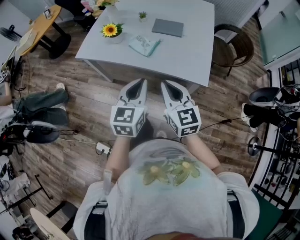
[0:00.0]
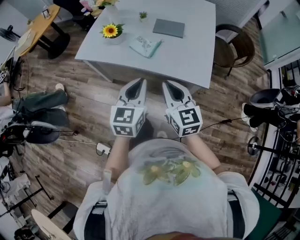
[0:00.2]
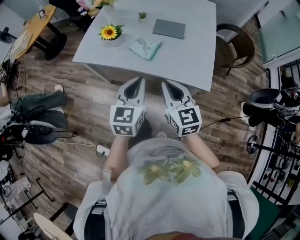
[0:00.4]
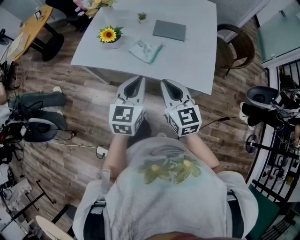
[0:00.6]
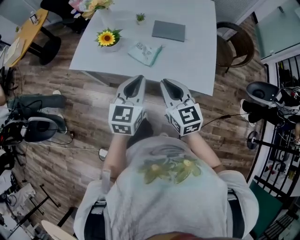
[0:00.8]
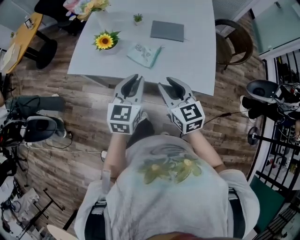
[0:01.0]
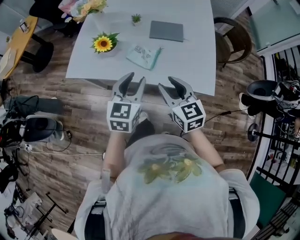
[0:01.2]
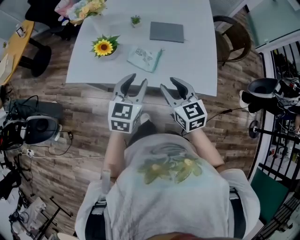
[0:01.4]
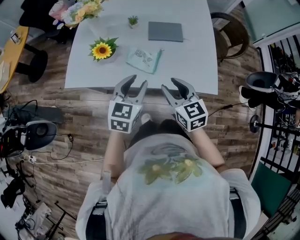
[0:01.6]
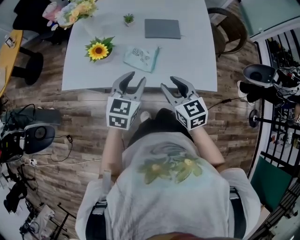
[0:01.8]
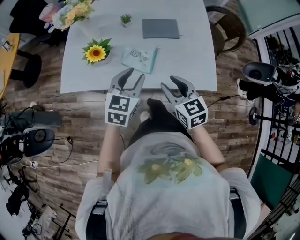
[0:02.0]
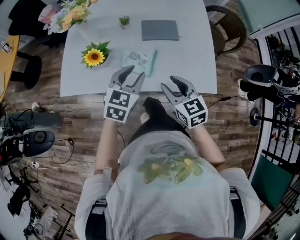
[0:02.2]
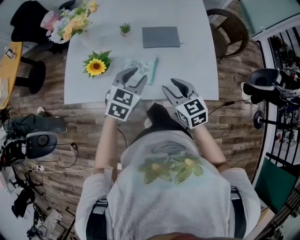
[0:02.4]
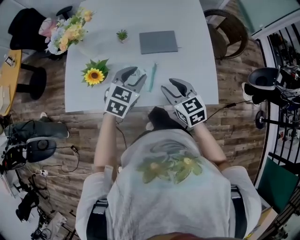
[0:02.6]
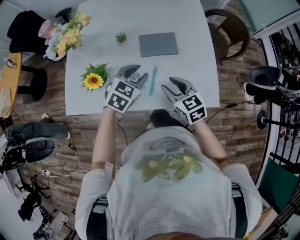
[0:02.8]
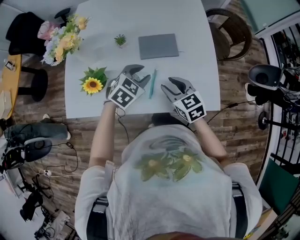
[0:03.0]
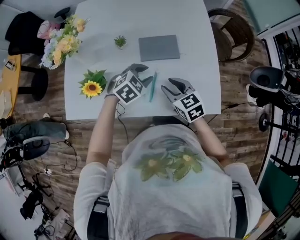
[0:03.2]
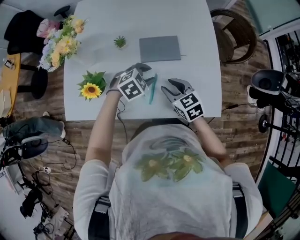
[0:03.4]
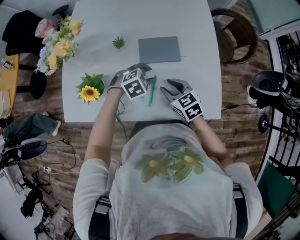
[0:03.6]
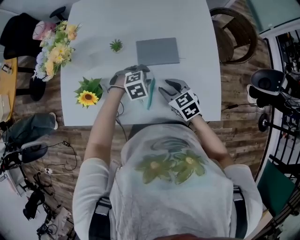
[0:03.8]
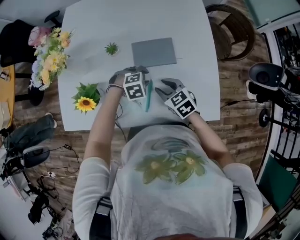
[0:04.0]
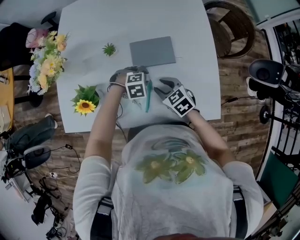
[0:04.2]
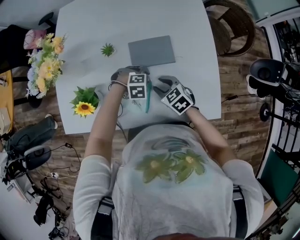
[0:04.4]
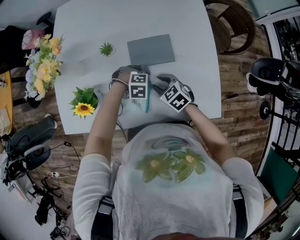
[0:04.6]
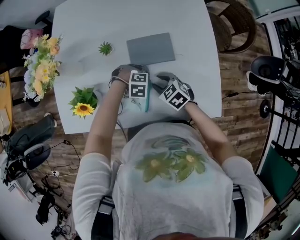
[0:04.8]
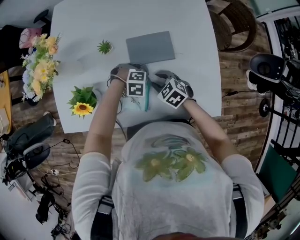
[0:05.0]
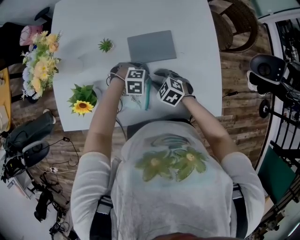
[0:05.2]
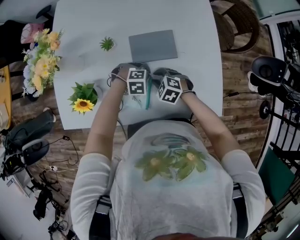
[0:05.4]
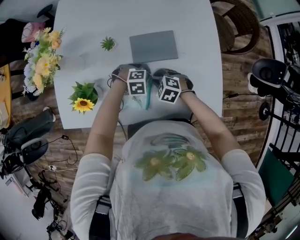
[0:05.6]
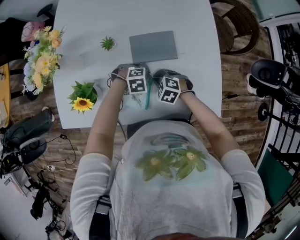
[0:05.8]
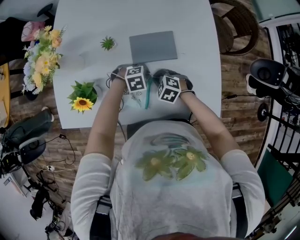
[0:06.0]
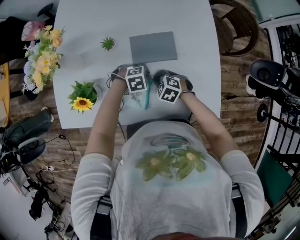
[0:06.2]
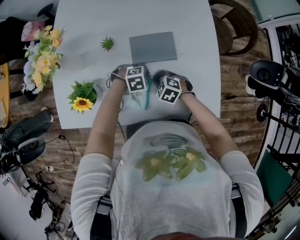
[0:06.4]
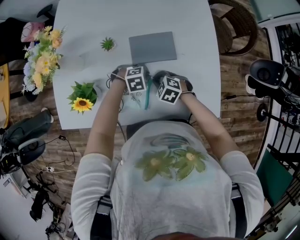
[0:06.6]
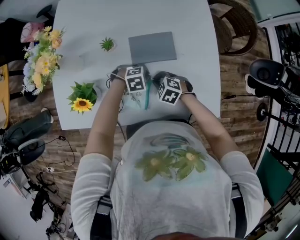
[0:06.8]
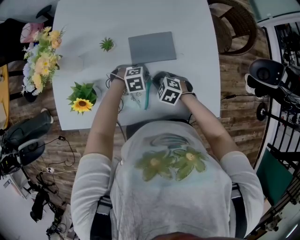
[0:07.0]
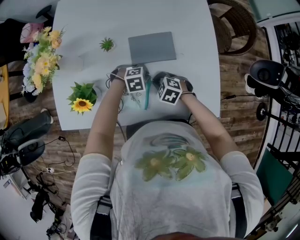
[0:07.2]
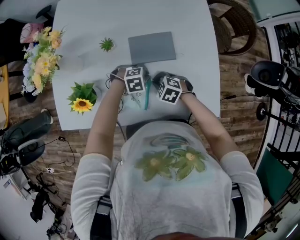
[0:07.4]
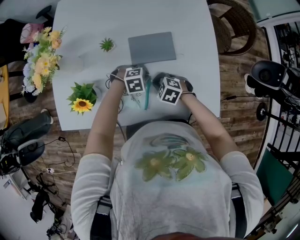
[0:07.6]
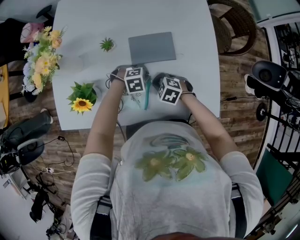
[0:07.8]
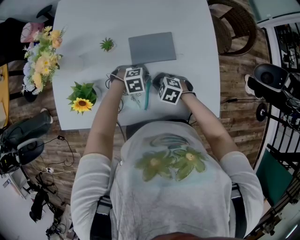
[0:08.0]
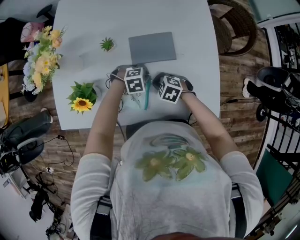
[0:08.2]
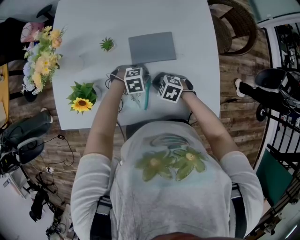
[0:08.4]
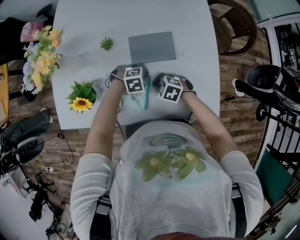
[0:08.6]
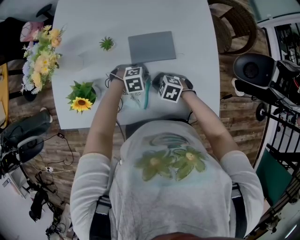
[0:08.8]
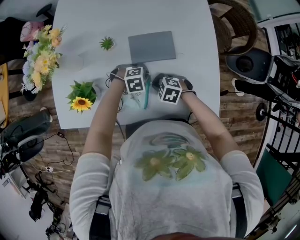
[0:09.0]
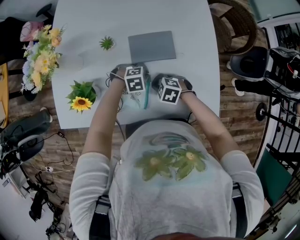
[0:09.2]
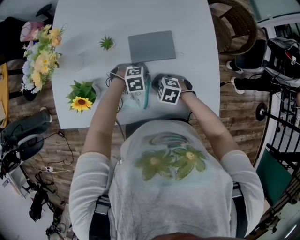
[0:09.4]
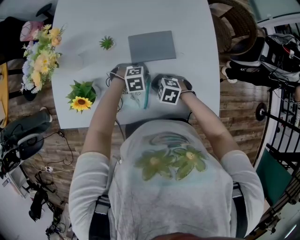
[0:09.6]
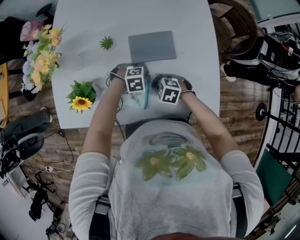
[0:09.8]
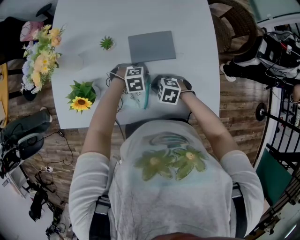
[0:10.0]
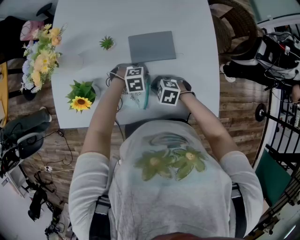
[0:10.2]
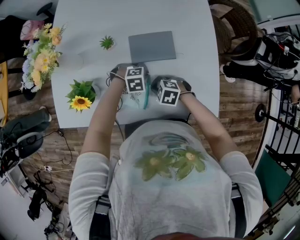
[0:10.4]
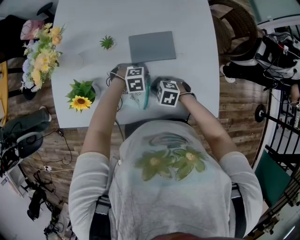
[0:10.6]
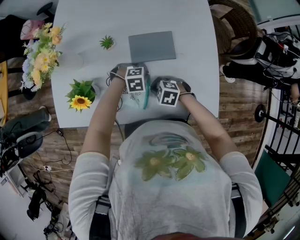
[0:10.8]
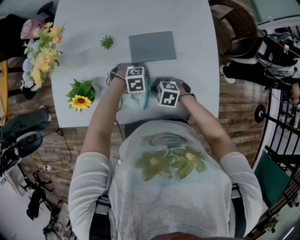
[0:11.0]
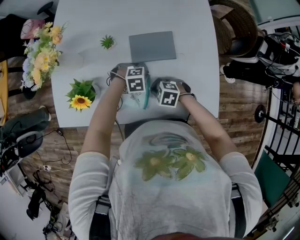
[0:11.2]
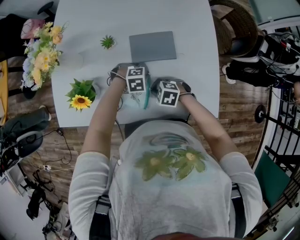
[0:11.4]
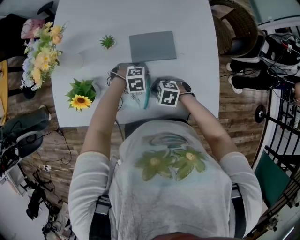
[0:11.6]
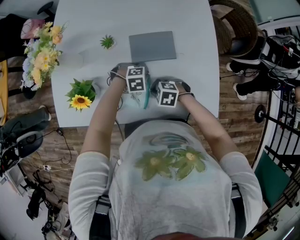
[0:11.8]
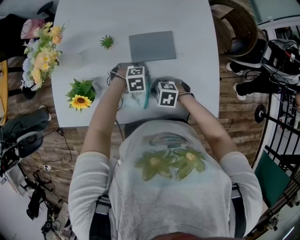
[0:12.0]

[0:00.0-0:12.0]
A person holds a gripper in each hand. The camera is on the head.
0.0 to 1.6 s: The left gripper is displaced forward and to the left by about 20 cm, rotates approximately 20 degrees, and opens; the right gripper is displaced forward by about 15 cm, and opens up.
1.6 to 3.0 s: Both grippers travel together forward and downward, roughly 20 cm. The left gripper changes its angle by approximately 40 degrees.
3.0 to 4.4 s: The right gripper is displaced downward by some 10 cm. Meanwhile the left gripper is displaced downward by approximately 15 cm, and turns by approximately 50 degrees.
4.4 to 6.0 s: The left gripper closes its fingers, while the right gripper goes approximately 5 cm downward, changes its angle by some 30 degrees, and closes up.
6.0 to 10.4 s: There are only small adjustments of the grippers.
10.4 to 12.0 s: There are only small adjustments of the grippers.

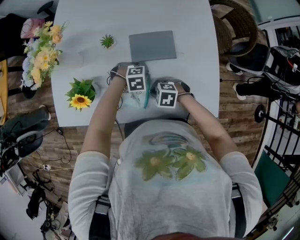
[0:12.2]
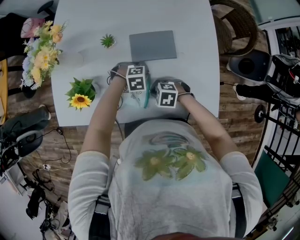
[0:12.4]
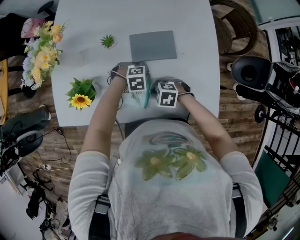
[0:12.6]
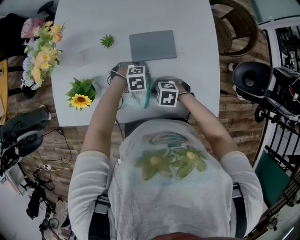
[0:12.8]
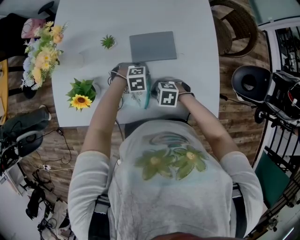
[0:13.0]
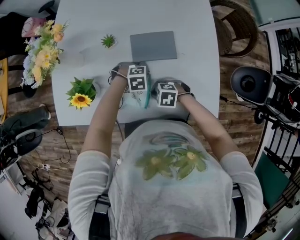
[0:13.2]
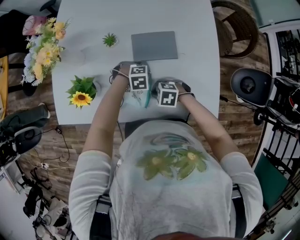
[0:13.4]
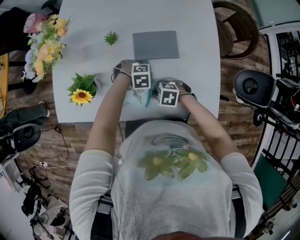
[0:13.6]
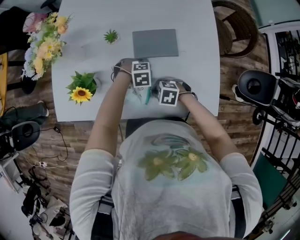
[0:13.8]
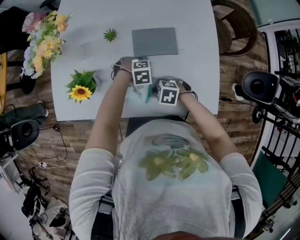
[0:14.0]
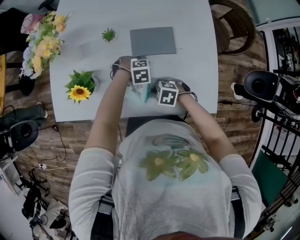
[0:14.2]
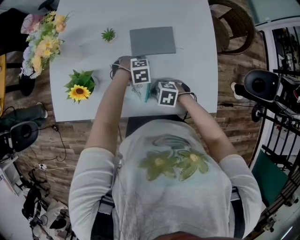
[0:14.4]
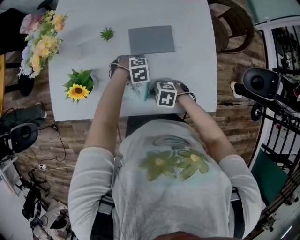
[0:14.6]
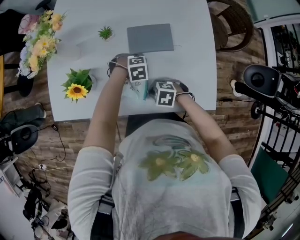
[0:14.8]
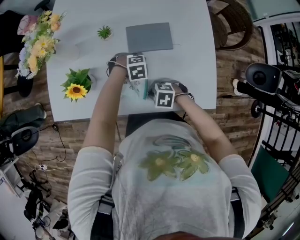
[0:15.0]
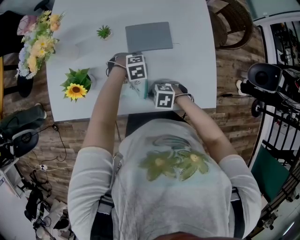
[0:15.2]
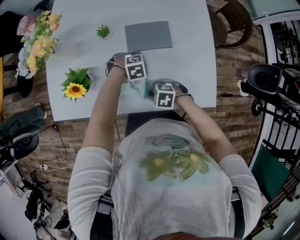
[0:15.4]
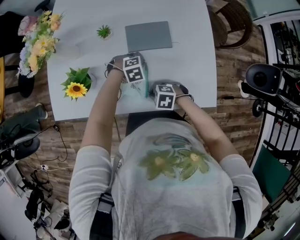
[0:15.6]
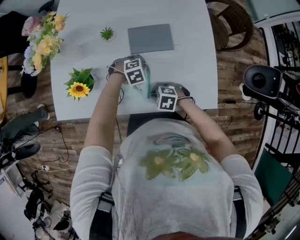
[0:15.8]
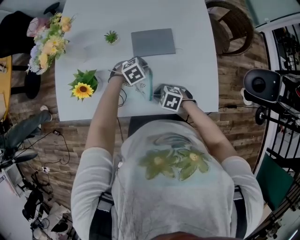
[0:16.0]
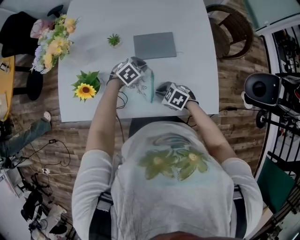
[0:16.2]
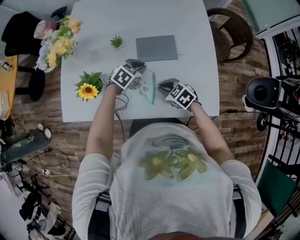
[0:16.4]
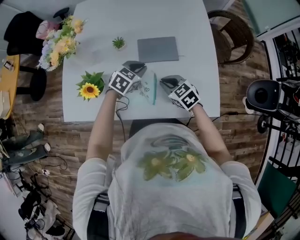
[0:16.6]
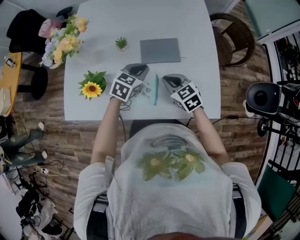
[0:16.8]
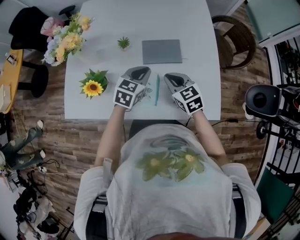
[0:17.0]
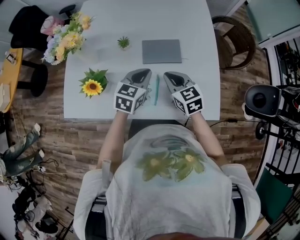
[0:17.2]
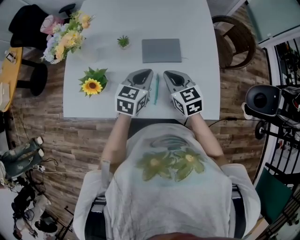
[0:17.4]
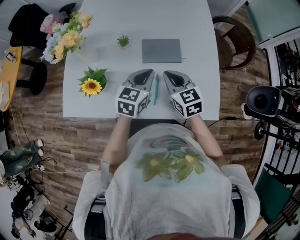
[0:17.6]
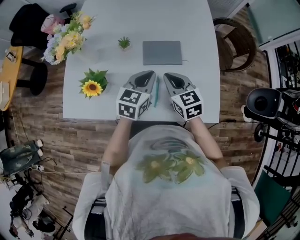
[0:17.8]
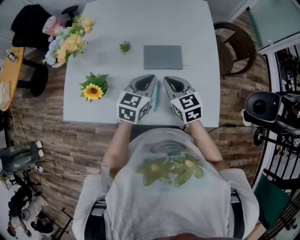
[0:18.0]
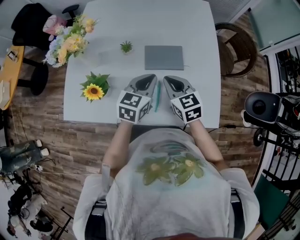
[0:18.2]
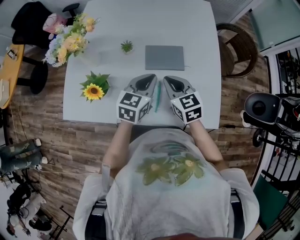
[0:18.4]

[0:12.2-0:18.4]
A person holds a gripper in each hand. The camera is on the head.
12.2 to 13.8 s: The grippers stay close to where they were, moving slightly.
13.8 to 15.4 s: The grippers make only small movements.
15.4 to 16.8 s: Both grippers travel together upward, some 15 cm. The left gripper tips its fingers upward by roughly 40 degrees. The right gripper swivels some 50 degrees.
16.8 to 18.4 s: The grippers both shift upward by some 5 cm. The left gripper swivels about 20 degrees.

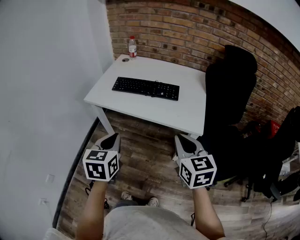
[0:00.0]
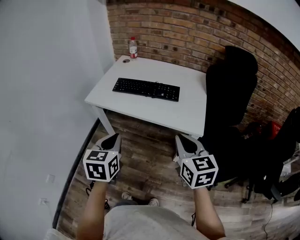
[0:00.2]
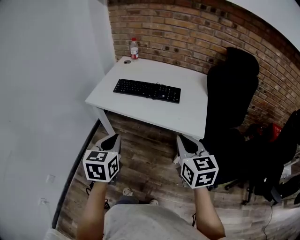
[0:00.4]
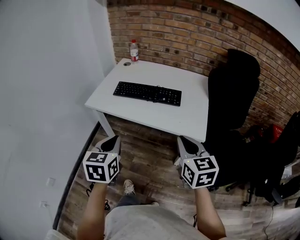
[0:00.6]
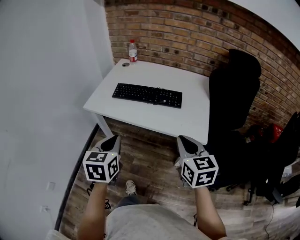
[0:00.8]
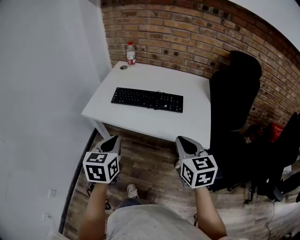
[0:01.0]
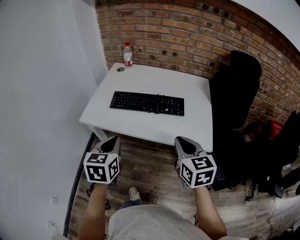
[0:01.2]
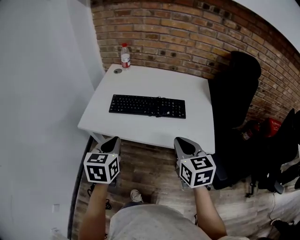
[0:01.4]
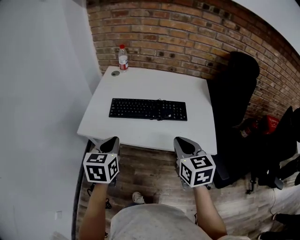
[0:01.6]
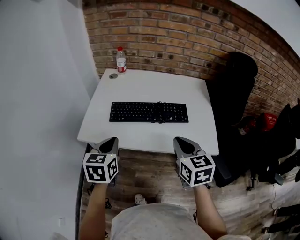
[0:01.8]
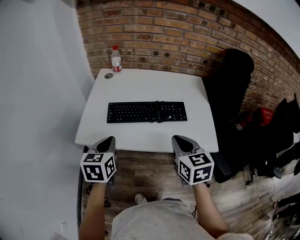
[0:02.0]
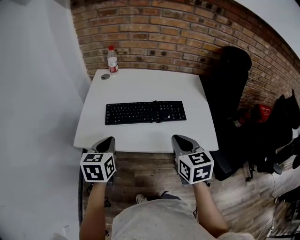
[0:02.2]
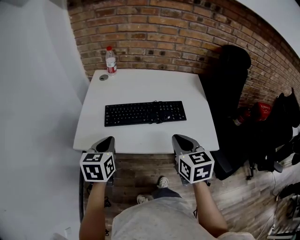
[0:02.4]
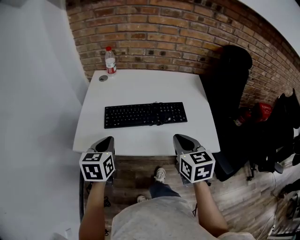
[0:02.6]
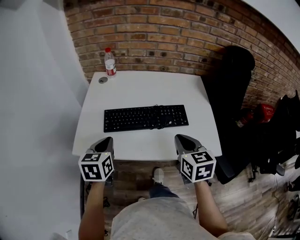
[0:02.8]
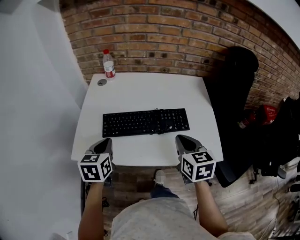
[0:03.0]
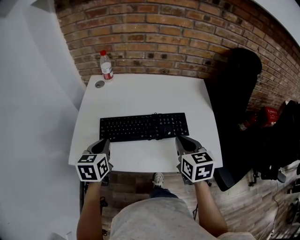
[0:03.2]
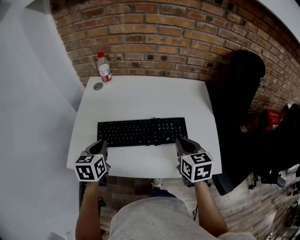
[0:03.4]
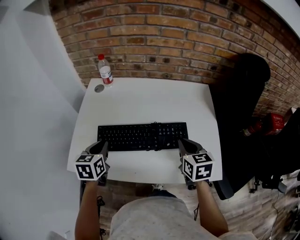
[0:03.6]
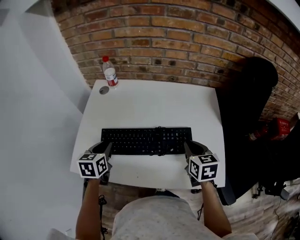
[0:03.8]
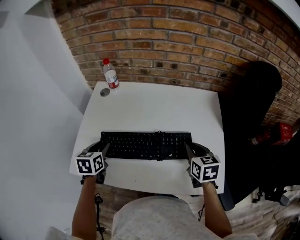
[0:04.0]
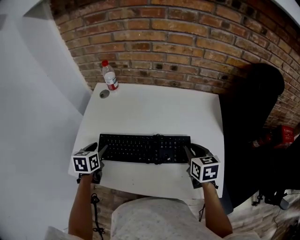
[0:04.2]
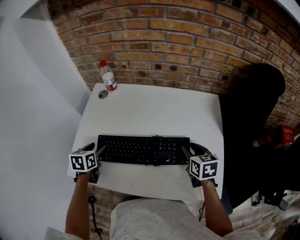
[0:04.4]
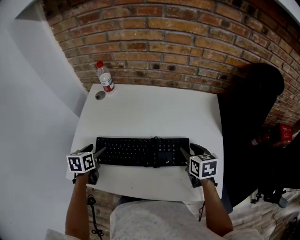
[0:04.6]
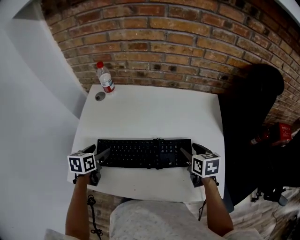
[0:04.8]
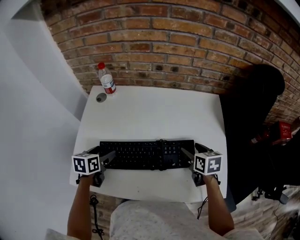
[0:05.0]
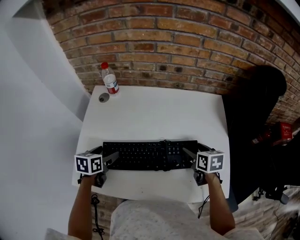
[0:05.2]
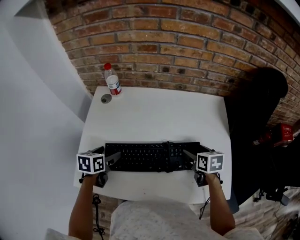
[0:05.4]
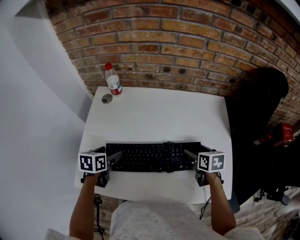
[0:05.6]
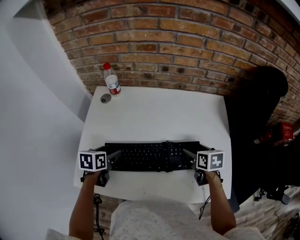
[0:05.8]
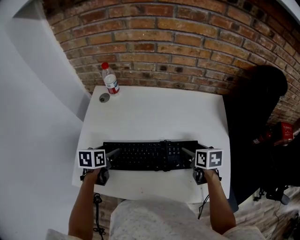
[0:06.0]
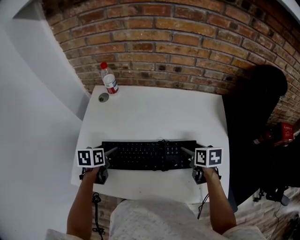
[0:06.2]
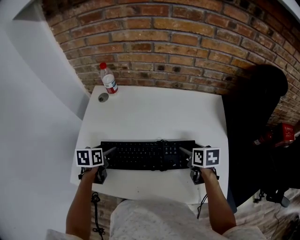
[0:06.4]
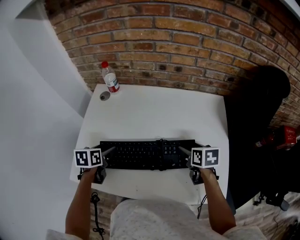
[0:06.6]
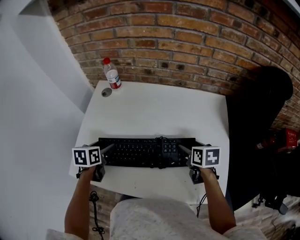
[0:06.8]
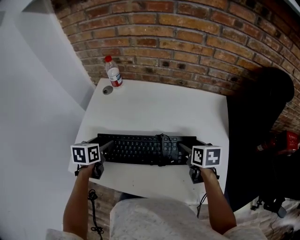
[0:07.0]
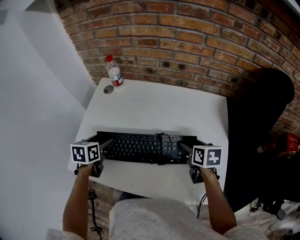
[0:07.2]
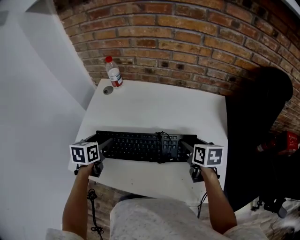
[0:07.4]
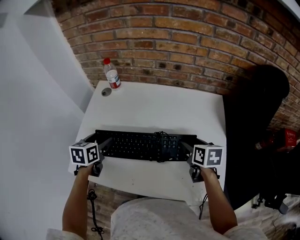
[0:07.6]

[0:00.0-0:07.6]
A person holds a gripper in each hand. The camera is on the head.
0.0 to 1.6 s: The right gripper travels forward and to the left by some 20 cm, while the left gripper heads forward, covering some 20 cm.
1.6 to 3.0 s: The grippers both shift forward by about 10 cm.
3.0 to 4.6 s: The left gripper shifts some 15 cm forward and downward, and opens, while the right gripper goes approximately 20 cm forward, to the right and downward, and opens its fingers.
4.6 to 6.0 s: The right gripper opens up.
6.0 to 7.6 s: The left gripper heads upward, covering some 5 cm.
